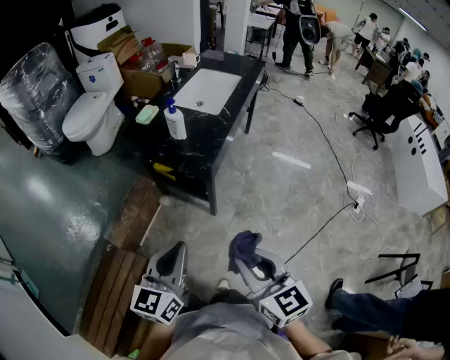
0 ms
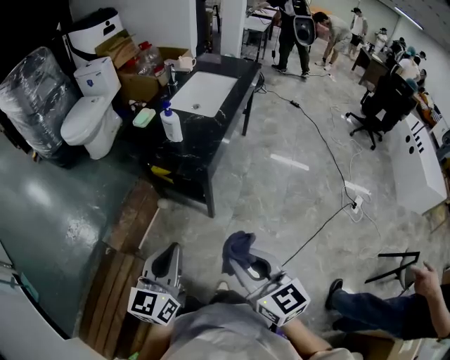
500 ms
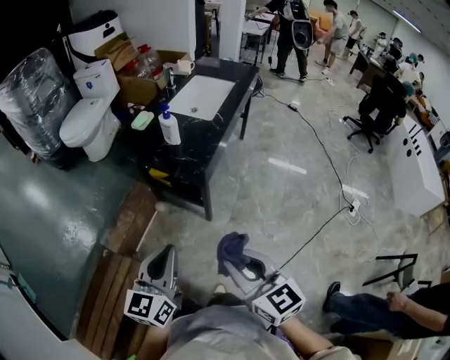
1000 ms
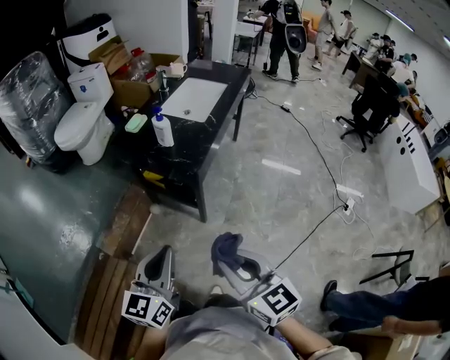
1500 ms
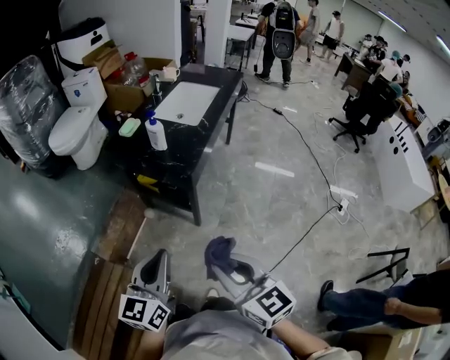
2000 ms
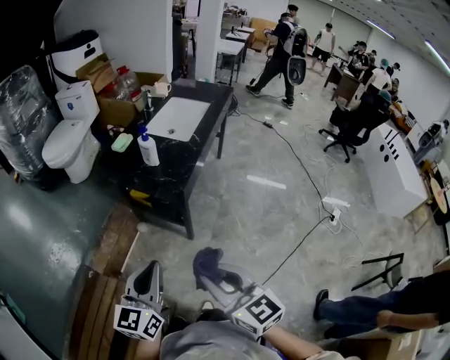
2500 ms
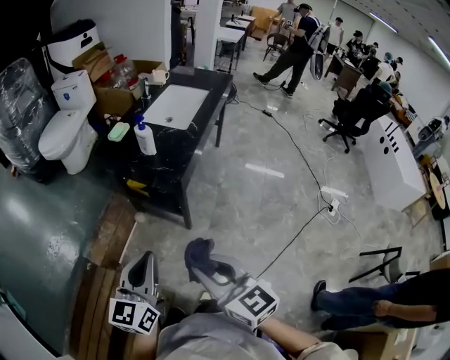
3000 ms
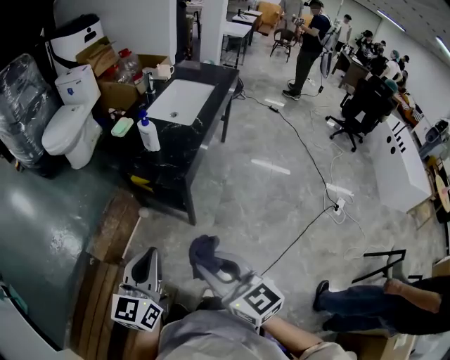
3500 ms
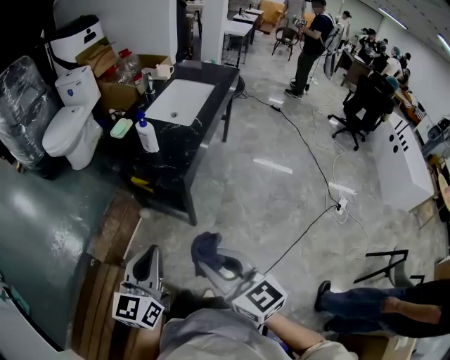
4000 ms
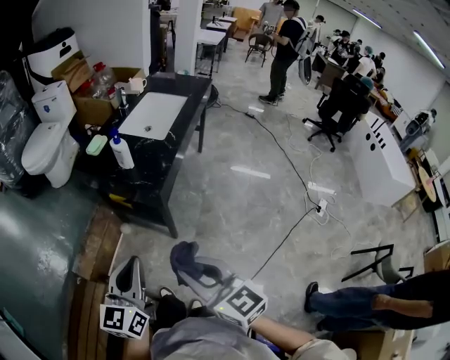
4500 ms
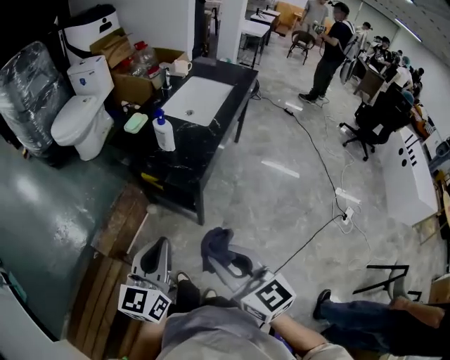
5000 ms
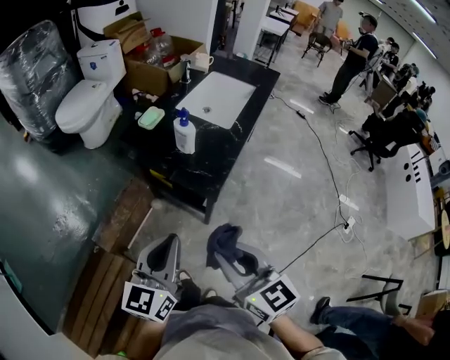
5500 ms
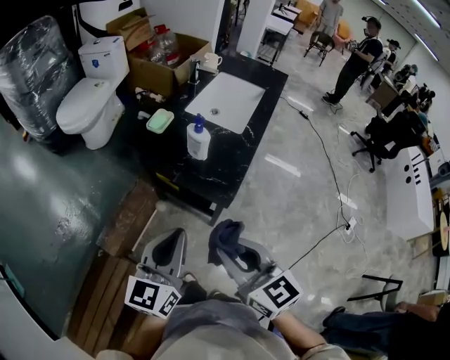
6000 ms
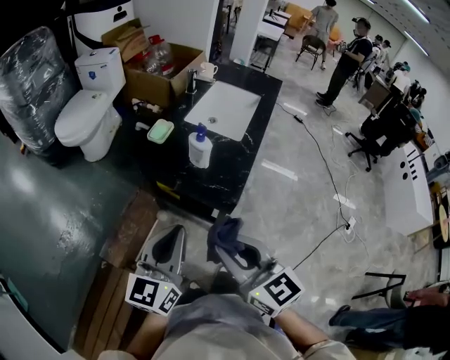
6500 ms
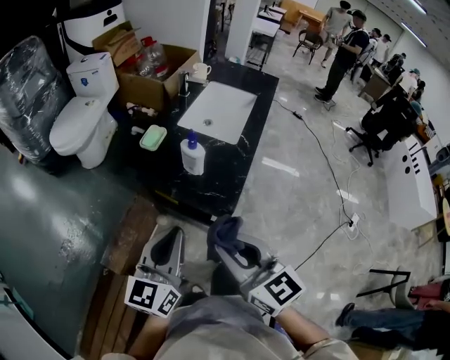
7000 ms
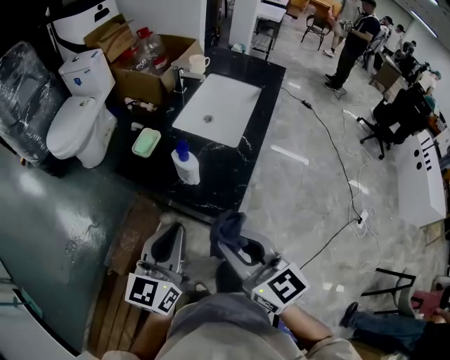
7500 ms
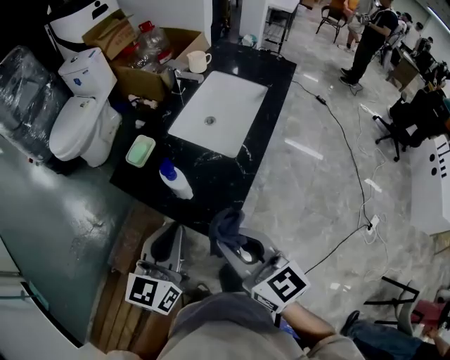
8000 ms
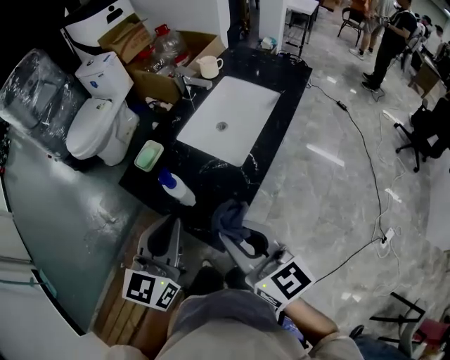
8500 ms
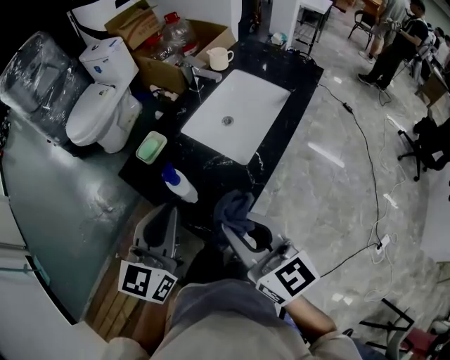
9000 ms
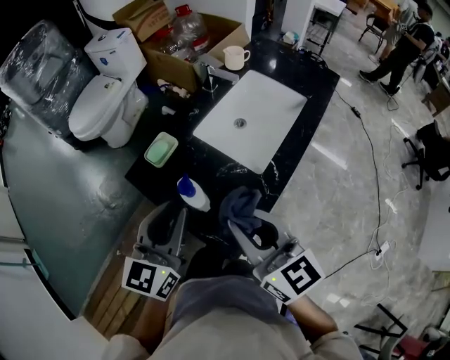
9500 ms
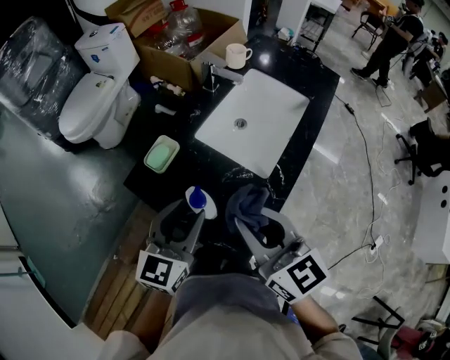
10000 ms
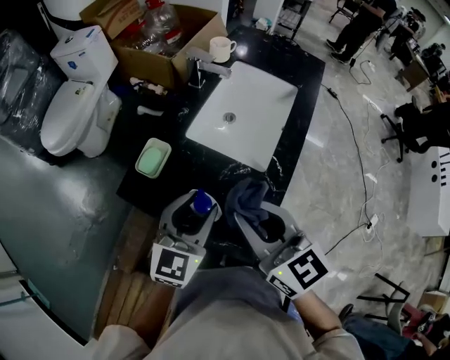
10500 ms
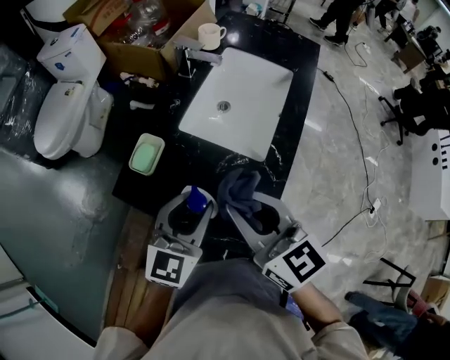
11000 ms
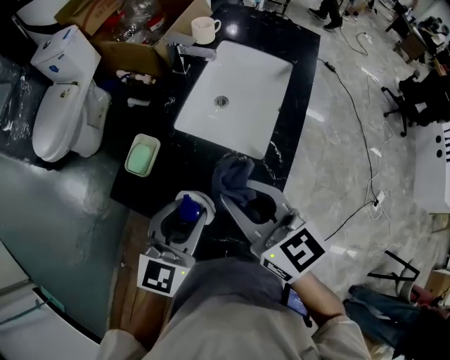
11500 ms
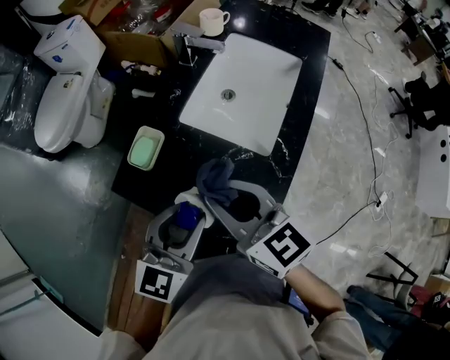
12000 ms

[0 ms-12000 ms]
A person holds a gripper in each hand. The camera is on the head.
0 ms to 4000 ms: The grippers move only a little.
4000 ms to 6000 ms: The two grippers go roughly 20 cm forward and to the left.
6000 ms to 8000 ms: Both grippers travel together forward and to the right, about 20 cm.
8000 ms to 10000 ms: Both grippers move forward, about 15 cm. The left gripper opens up.
10000 ms to 12000 ms: The right gripper heads downward, to the left and forward, covering roughly 10 cm.

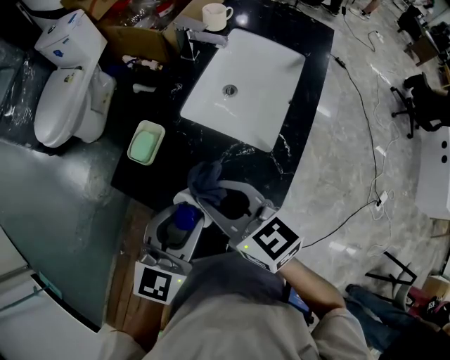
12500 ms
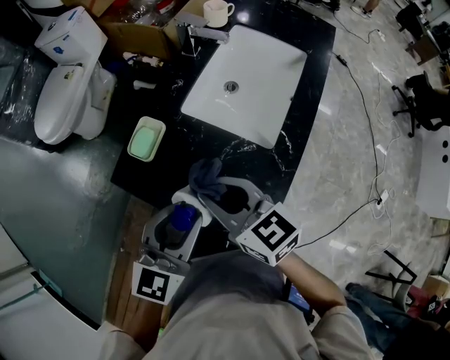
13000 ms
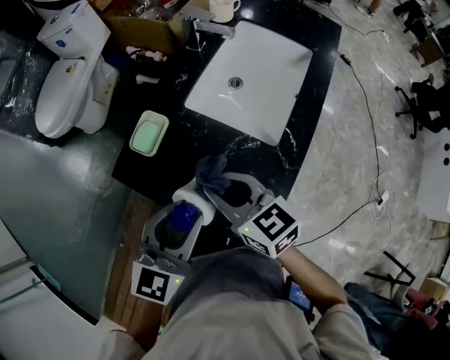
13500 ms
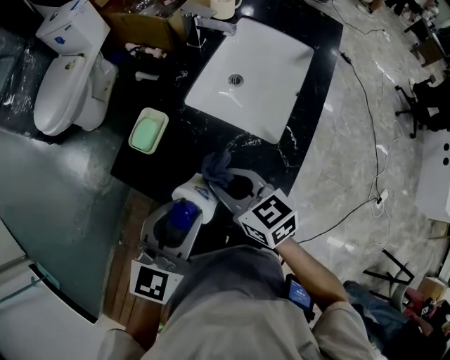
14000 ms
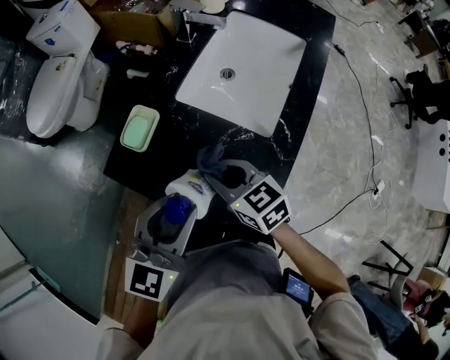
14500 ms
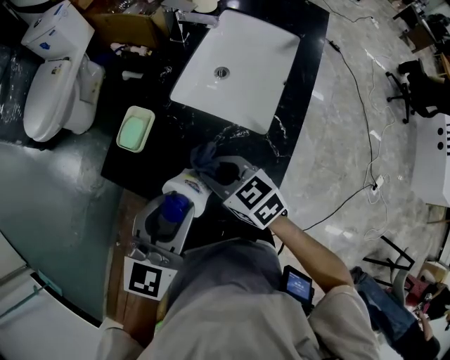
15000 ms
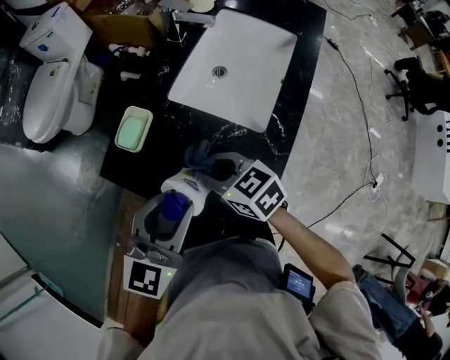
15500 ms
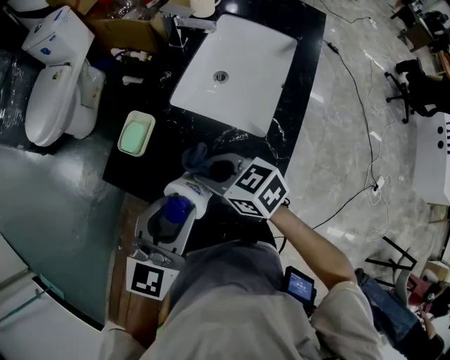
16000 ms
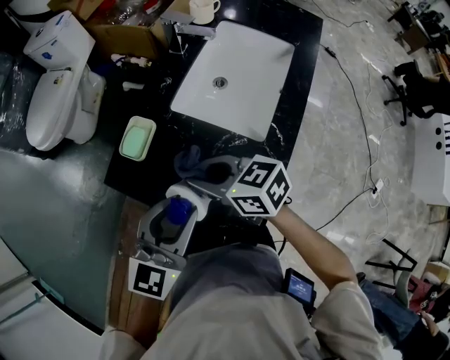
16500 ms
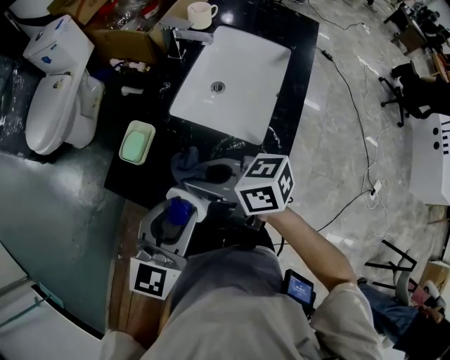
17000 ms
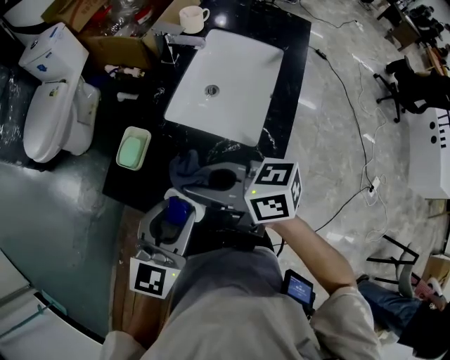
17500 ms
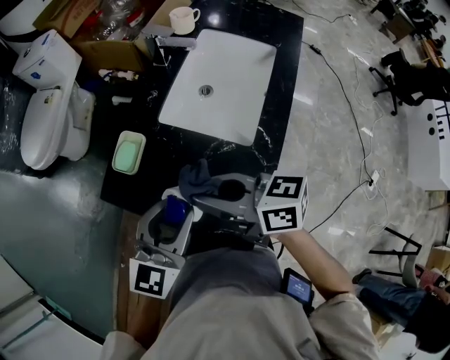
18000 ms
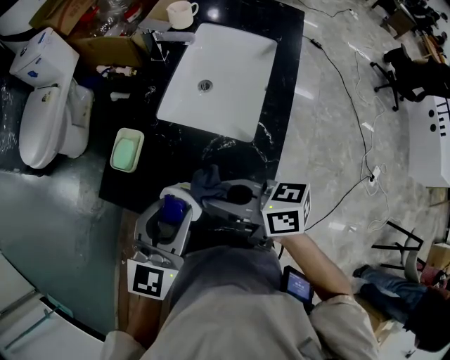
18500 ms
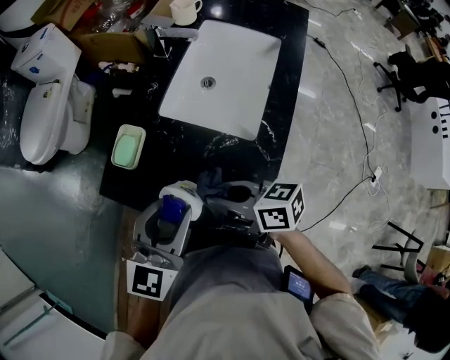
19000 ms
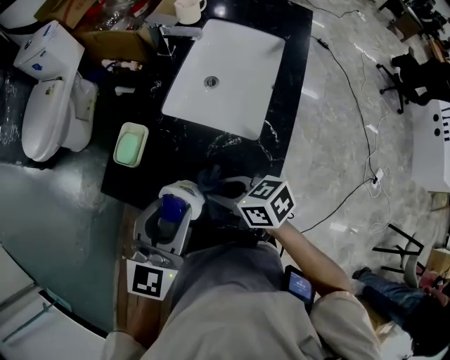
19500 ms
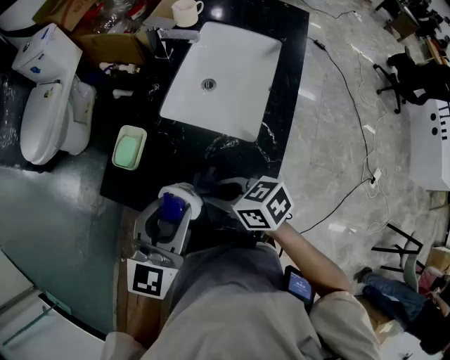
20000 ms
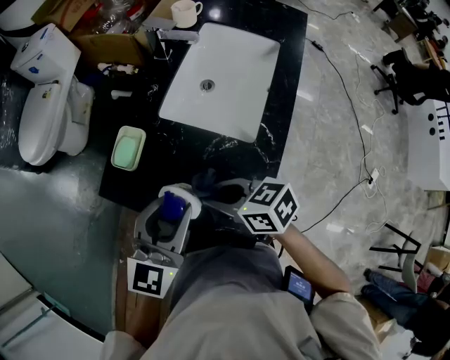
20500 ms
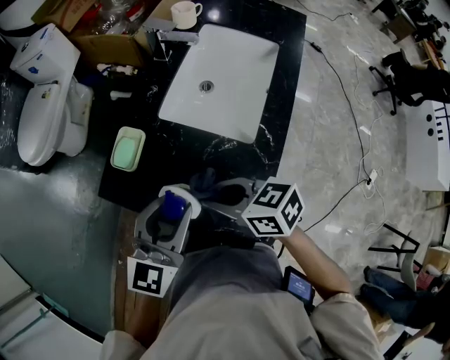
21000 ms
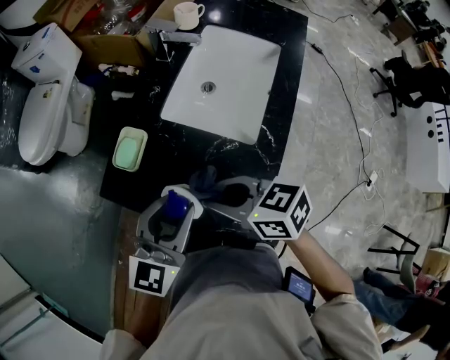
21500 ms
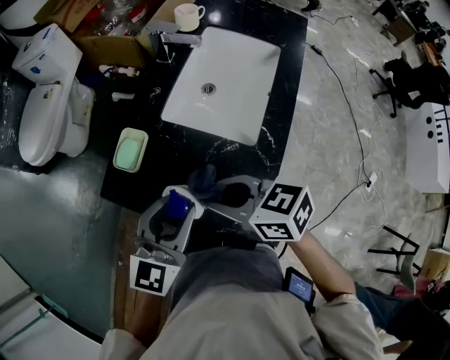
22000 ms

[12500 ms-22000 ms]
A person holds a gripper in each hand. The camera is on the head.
12500 ms to 14500 ms: The right gripper moves downward, about 10 cm.
14500 ms to 16500 ms: The right gripper travels upward by approximately 5 cm.
16500 ms to 18000 ms: The right gripper heads upward, covering some 5 cm, and swivels approximately 20 degrees.
18000 ms to 20000 ms: The right gripper goes about 10 cm downward, and swivels some 20 degrees.
20000 ms to 22000 ms: The right gripper travels upward by about 10 cm.

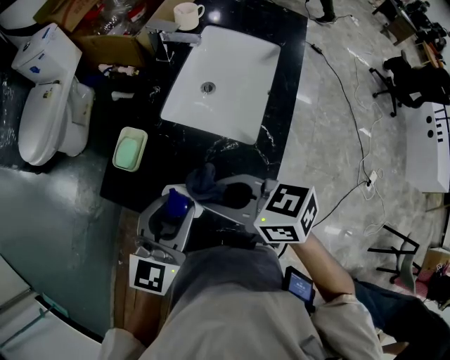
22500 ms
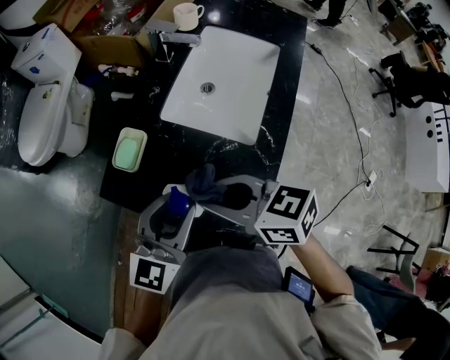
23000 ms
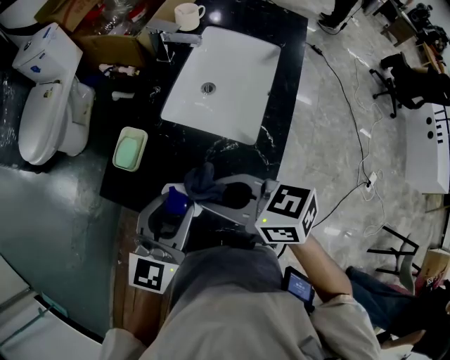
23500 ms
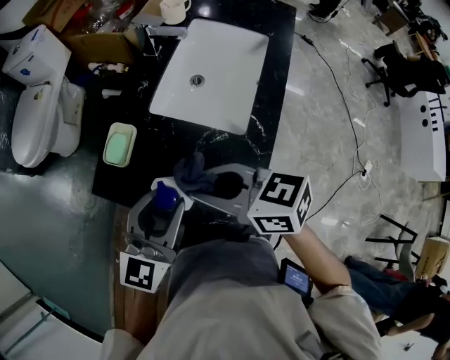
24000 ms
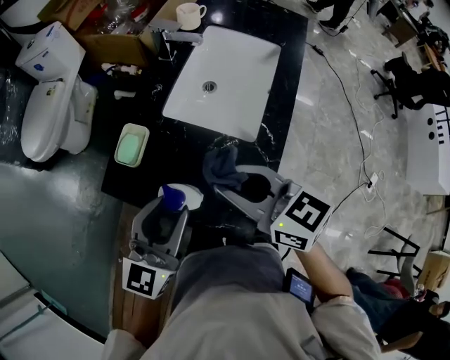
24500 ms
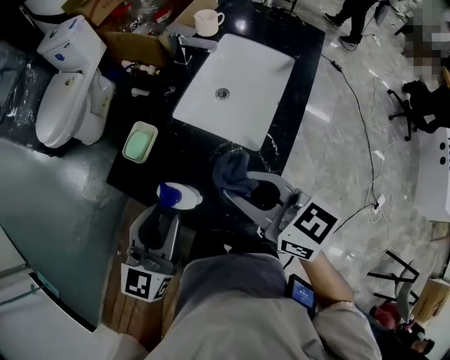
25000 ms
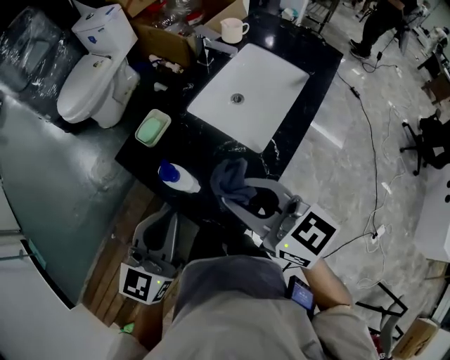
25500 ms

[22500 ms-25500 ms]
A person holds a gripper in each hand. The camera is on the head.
22500 ms to 24000 ms: Both grippers stay put.
24000 ms to 25500 ms: The left gripper moves backward and upward, roughly 10 cm, rotates approximately 20 degrees, and closes; the right gripper shifts approximately 10 cm upward, backward and to the right, and swivels roughly 20 degrees.

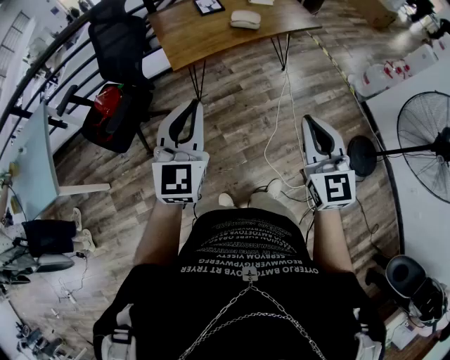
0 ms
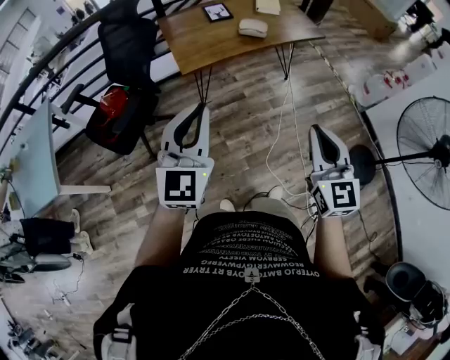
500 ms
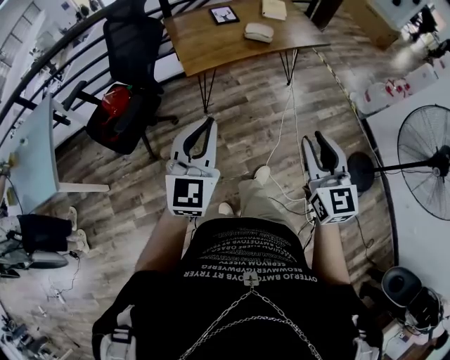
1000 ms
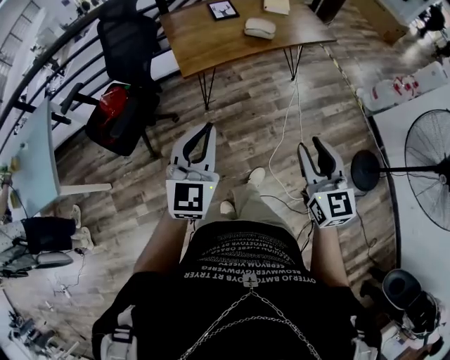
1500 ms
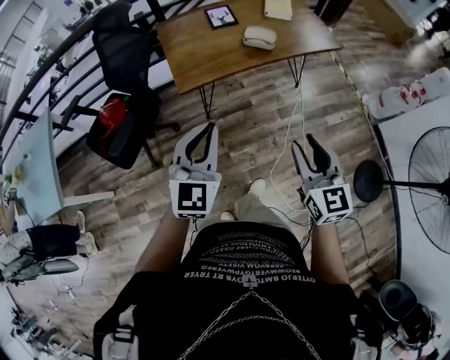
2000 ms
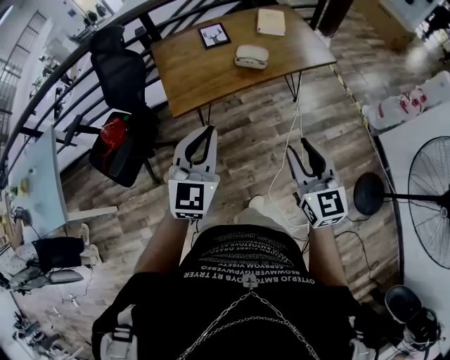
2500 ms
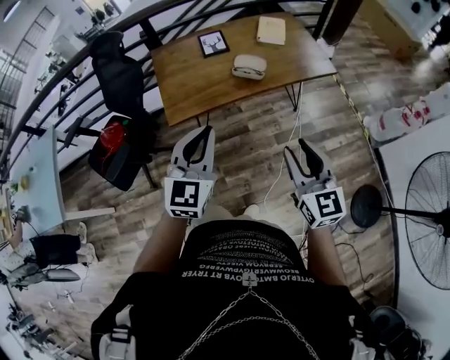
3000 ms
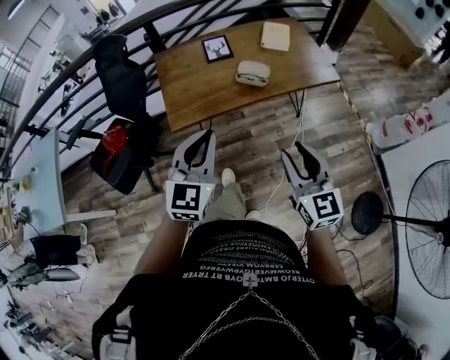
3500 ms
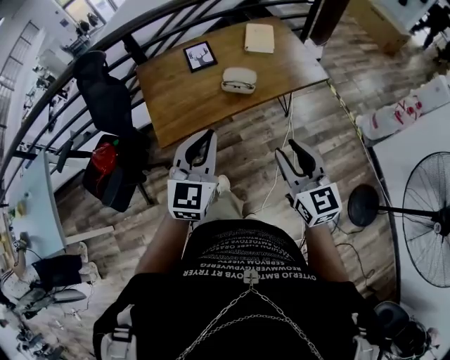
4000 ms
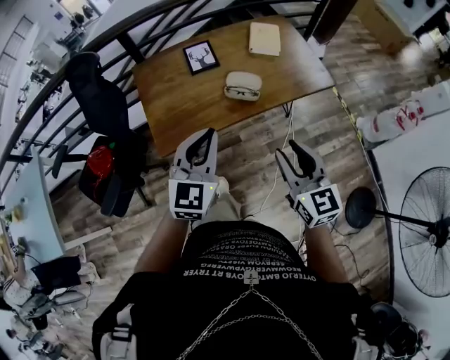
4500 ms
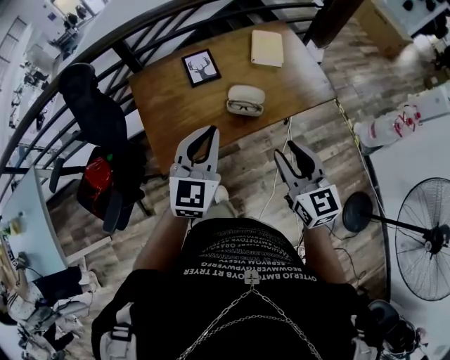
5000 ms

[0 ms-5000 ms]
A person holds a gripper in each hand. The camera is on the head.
0 ms to 2500 ms: Both grippers travel together forward, about 20 cm. The right gripper opens up.
2500 ms to 5000 ms: Both grippers move forward, approximately 30 cm.
